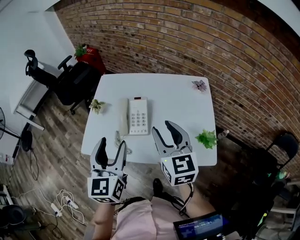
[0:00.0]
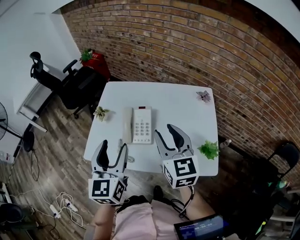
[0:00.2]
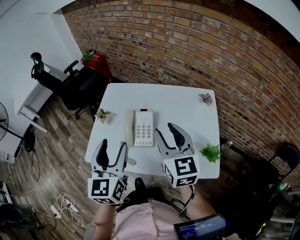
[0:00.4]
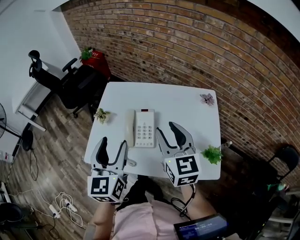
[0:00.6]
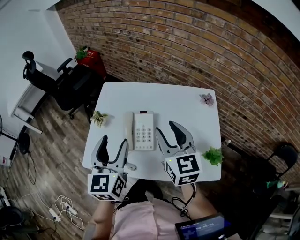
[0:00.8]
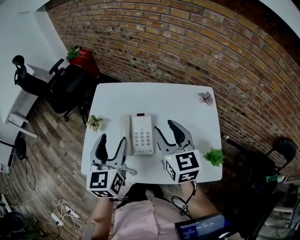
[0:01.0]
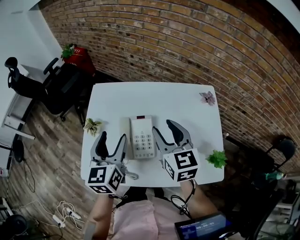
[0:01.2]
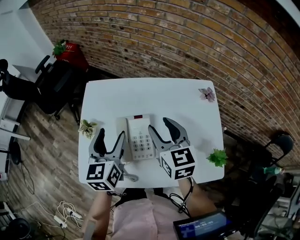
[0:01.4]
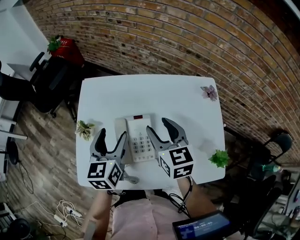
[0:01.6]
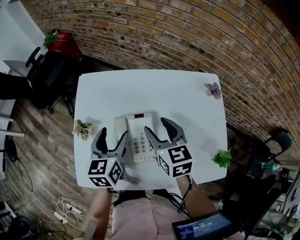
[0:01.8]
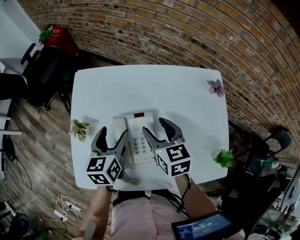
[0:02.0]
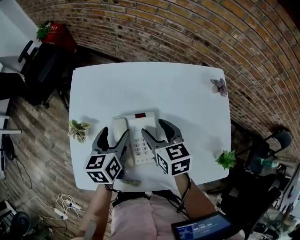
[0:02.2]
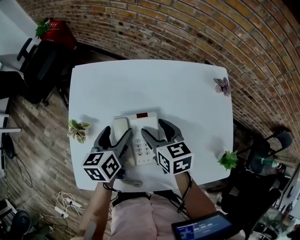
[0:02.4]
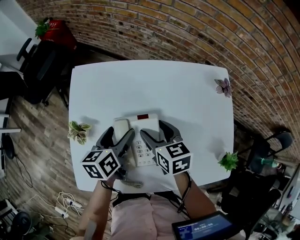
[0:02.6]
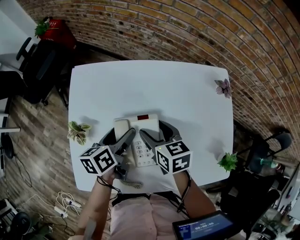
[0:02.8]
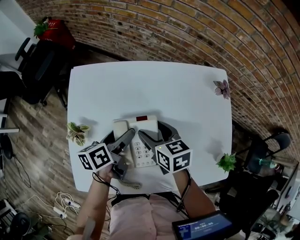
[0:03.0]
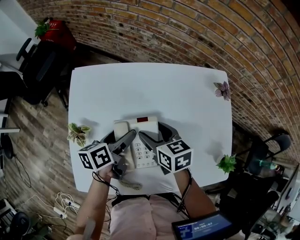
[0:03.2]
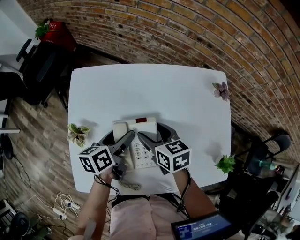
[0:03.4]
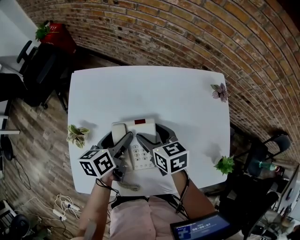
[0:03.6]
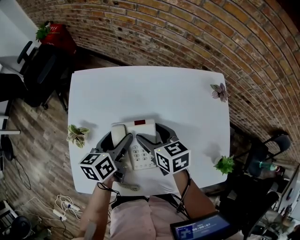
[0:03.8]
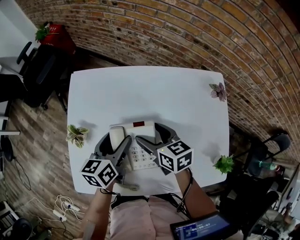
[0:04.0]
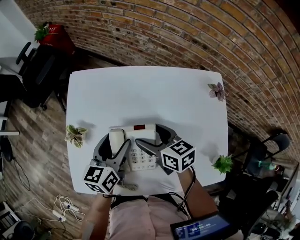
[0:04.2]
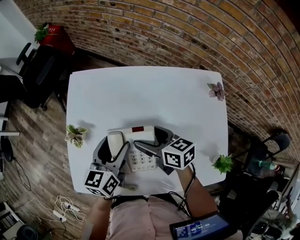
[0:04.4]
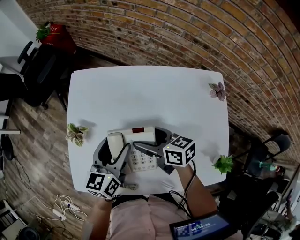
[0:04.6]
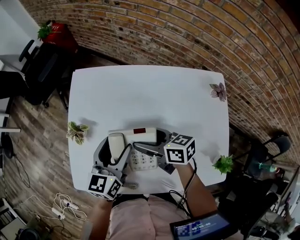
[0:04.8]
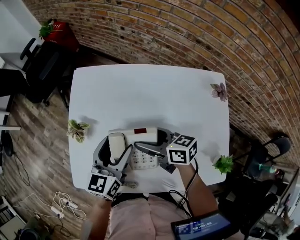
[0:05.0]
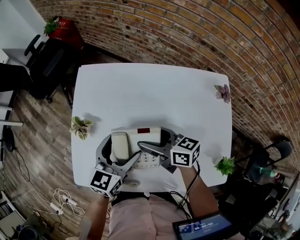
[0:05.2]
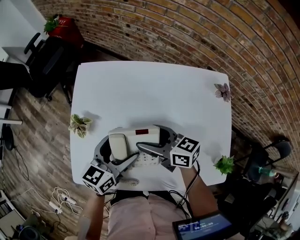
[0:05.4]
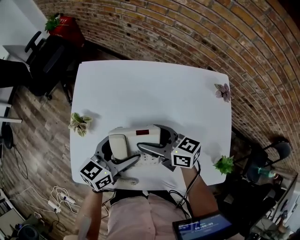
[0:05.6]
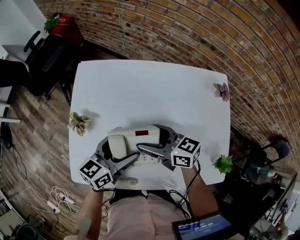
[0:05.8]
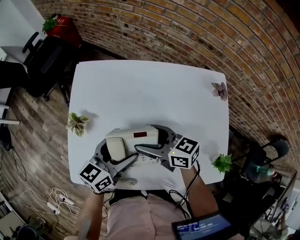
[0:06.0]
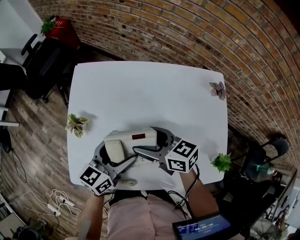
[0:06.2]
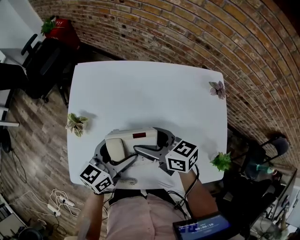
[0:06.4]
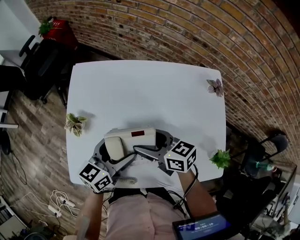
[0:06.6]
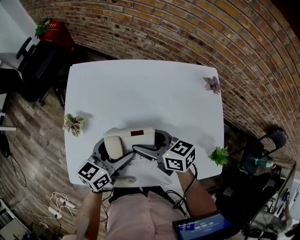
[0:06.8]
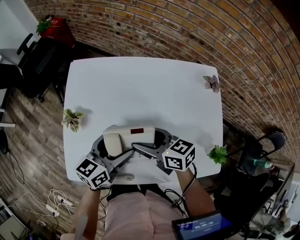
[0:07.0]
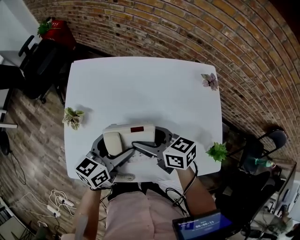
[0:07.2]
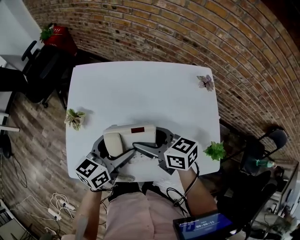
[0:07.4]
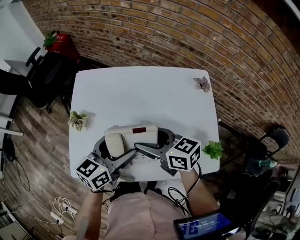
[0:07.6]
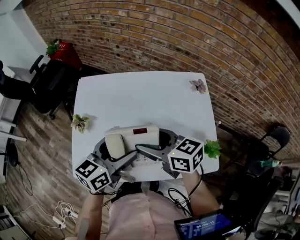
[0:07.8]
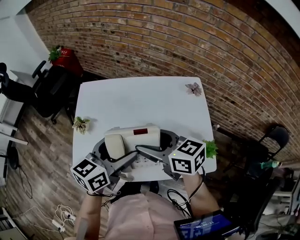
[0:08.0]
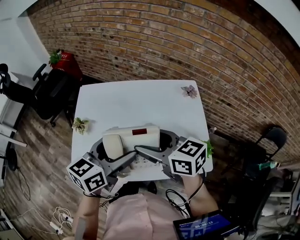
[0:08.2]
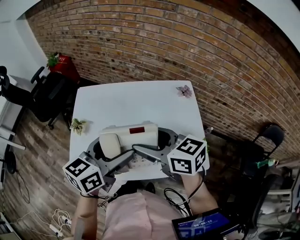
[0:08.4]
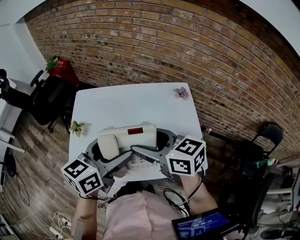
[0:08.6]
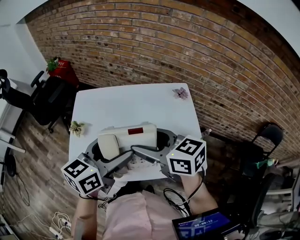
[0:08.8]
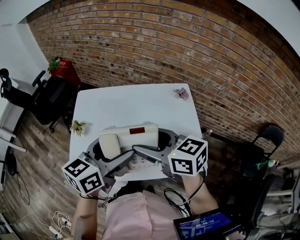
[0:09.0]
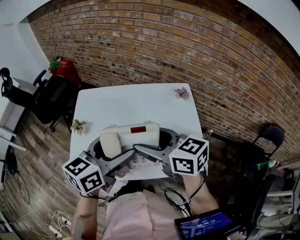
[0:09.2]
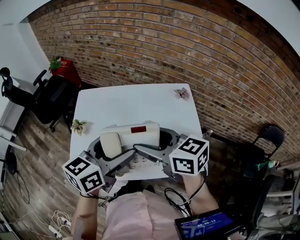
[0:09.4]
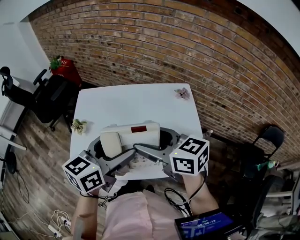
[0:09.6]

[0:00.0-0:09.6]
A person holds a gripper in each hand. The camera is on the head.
0:00.0 to 0:01.6: The two grippers go roughly 25 cm forward and downward.
0:01.6 to 0:03.2: Both grippers travel together downward, approximately 15 cm. The left gripper swivels roughly 40 degrees. Meanwhile the right gripper rotates approximately 20 degrees.
0:03.2 to 0:04.8: The right gripper turns by roughly 30 degrees, while the left gripper travels upward by roughly 5 cm, and swivels approximately 40 degrees.
0:06.4 to 0:08.0: Both grippers move upward and backward, roughly 15 cm.
0:08.0 to 0:09.6: Both grippers travel together upward, some 5 cm.

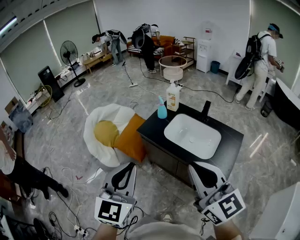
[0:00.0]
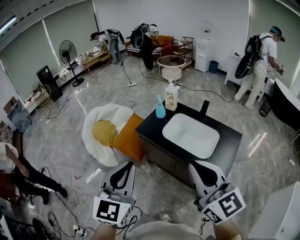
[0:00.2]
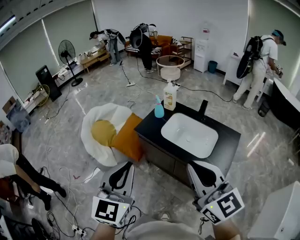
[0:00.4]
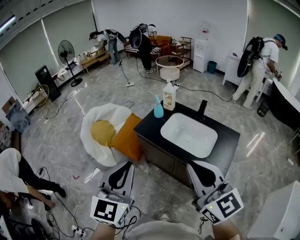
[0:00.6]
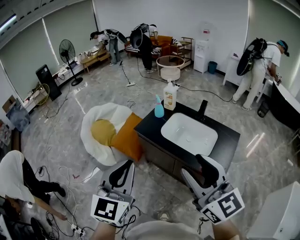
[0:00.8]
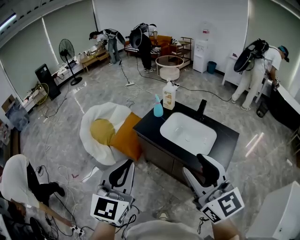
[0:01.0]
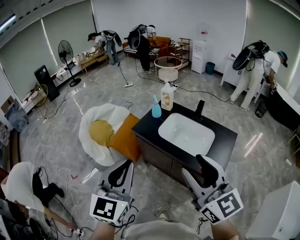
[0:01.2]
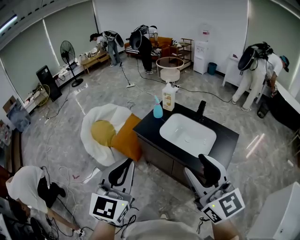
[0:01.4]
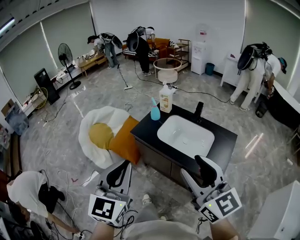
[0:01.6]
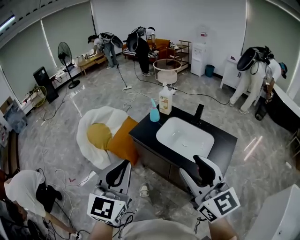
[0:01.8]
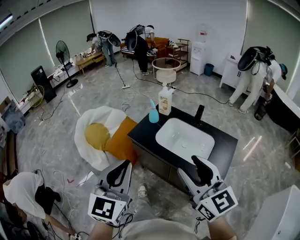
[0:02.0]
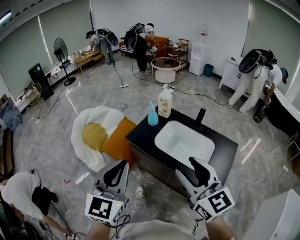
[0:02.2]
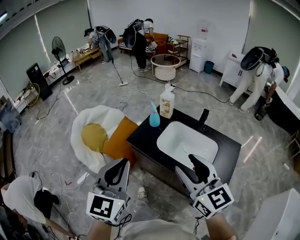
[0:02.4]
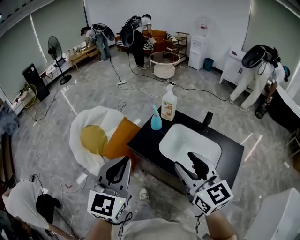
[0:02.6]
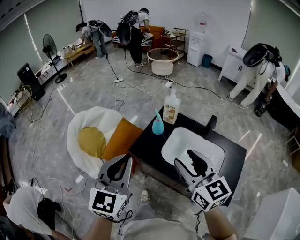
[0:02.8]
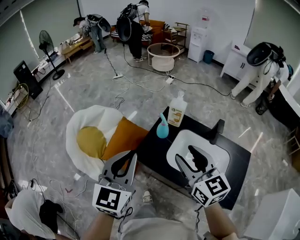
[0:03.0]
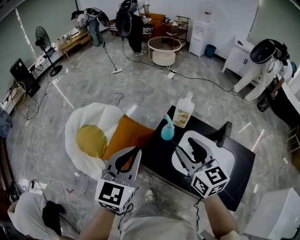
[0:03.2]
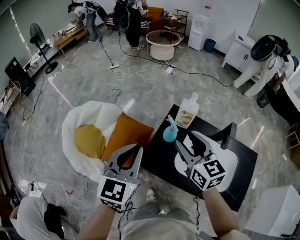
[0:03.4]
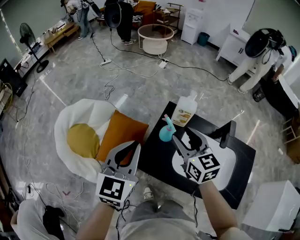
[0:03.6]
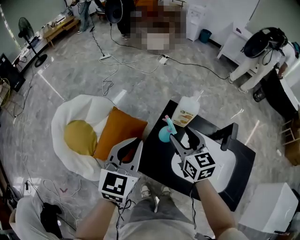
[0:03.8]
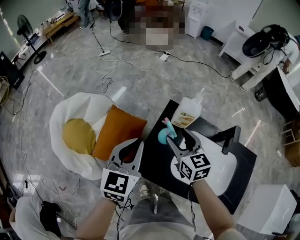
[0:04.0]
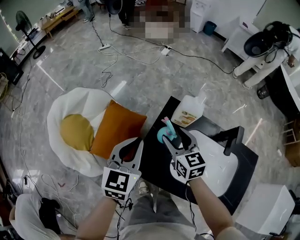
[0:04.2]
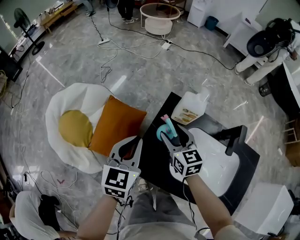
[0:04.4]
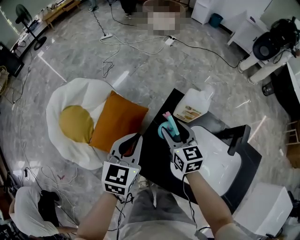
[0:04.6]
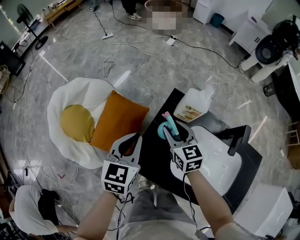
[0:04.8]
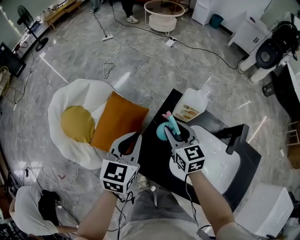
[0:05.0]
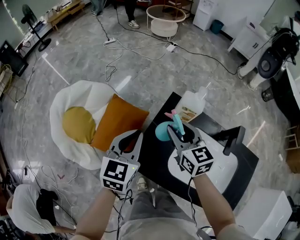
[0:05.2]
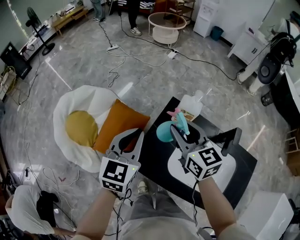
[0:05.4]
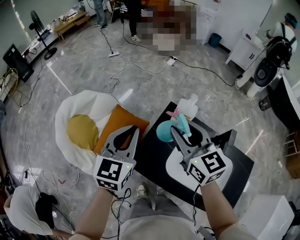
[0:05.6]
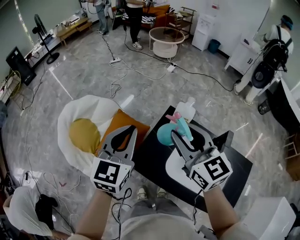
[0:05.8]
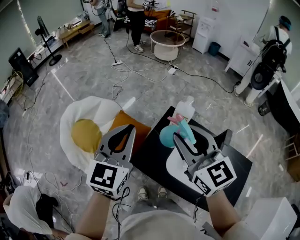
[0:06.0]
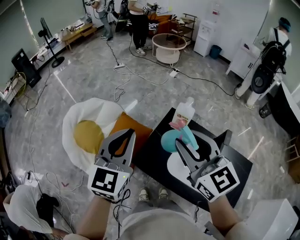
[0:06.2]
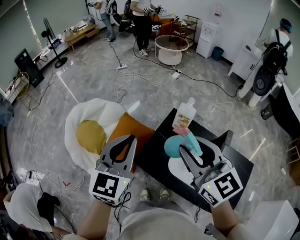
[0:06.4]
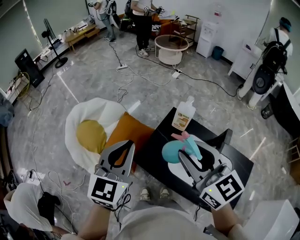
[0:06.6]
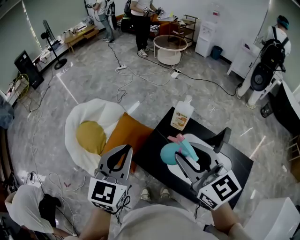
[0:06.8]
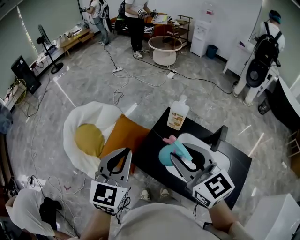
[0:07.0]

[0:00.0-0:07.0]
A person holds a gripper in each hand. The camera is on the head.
0:00.0 to 0:01.4: The right gripper opens its fingers.
0:01.4 to 0:02.8: Both grippers travel together forward, roughly 30 cm.
0:02.8 to 0:04.2: The two grippers go about 40 cm forward and downward.
0:04.2 to 0:05.6: The left gripper shifts roughly 10 cm upward. The right gripper is displaced upward by some 20 cm, and closes.
0:05.6 to 0:07.0: The two grippers go roughly 15 cm backward and upward.

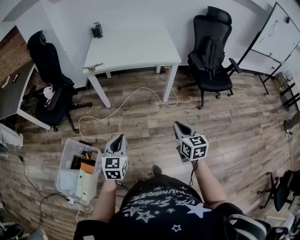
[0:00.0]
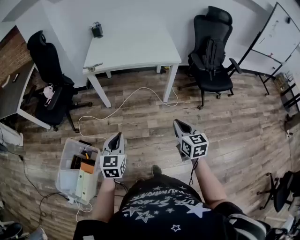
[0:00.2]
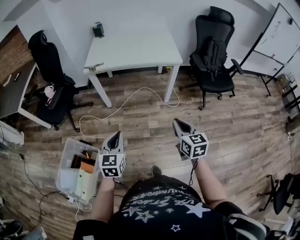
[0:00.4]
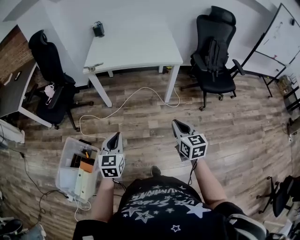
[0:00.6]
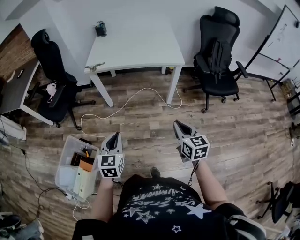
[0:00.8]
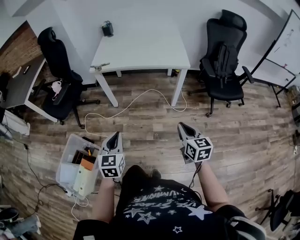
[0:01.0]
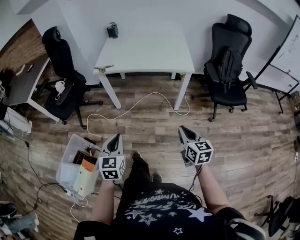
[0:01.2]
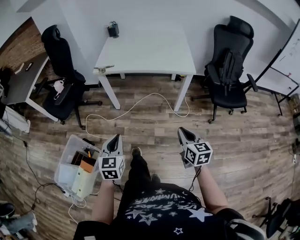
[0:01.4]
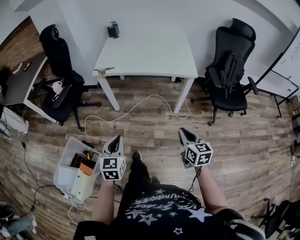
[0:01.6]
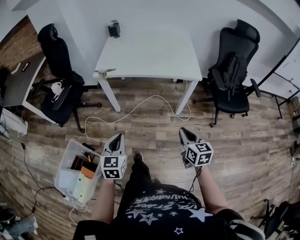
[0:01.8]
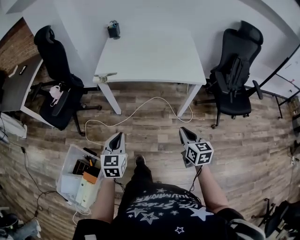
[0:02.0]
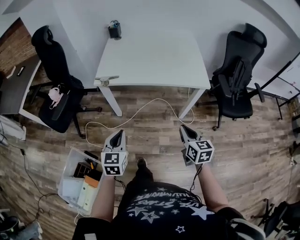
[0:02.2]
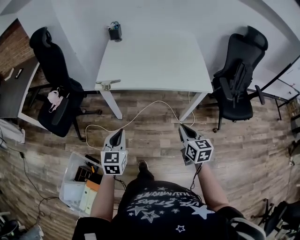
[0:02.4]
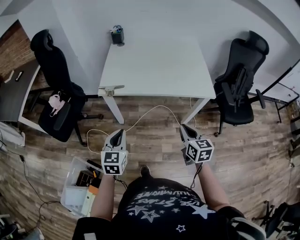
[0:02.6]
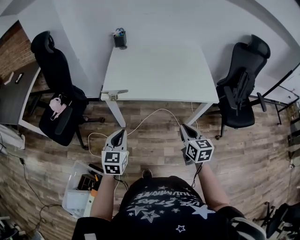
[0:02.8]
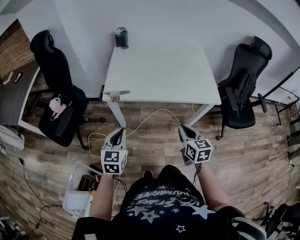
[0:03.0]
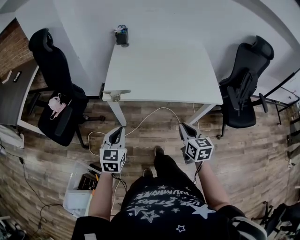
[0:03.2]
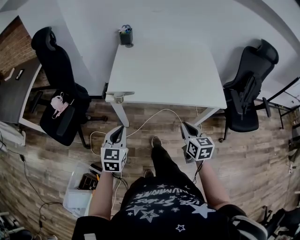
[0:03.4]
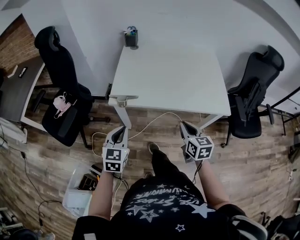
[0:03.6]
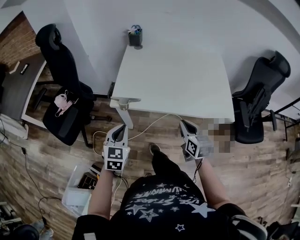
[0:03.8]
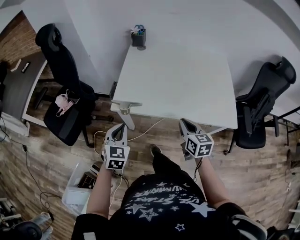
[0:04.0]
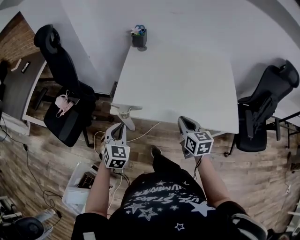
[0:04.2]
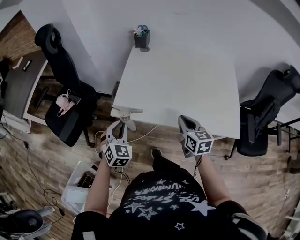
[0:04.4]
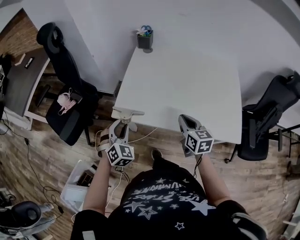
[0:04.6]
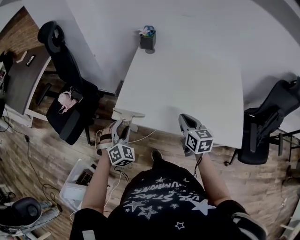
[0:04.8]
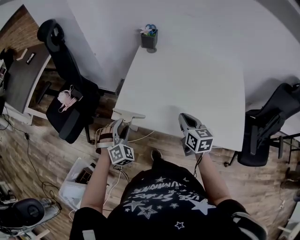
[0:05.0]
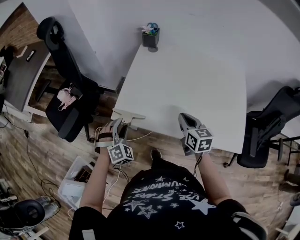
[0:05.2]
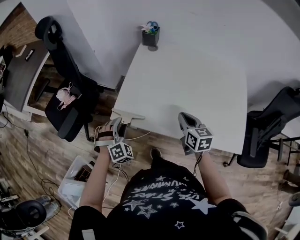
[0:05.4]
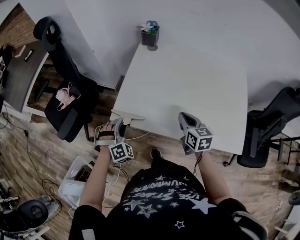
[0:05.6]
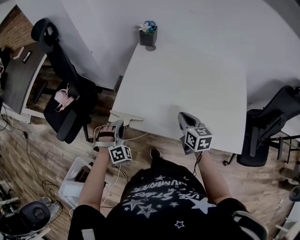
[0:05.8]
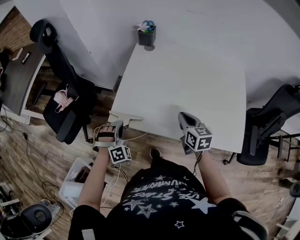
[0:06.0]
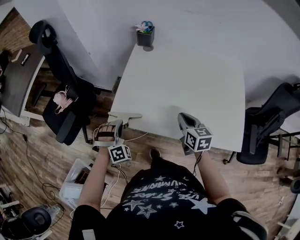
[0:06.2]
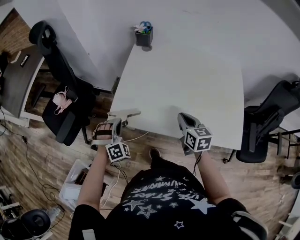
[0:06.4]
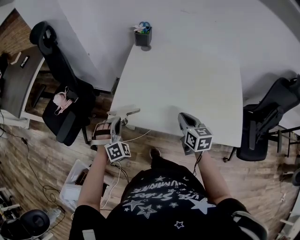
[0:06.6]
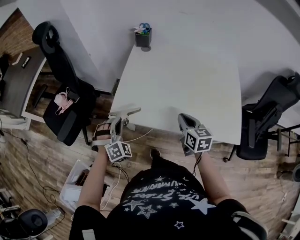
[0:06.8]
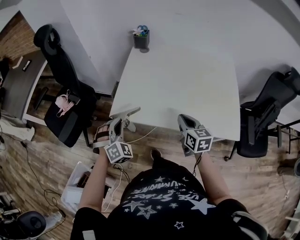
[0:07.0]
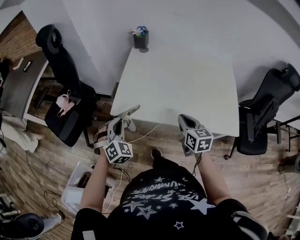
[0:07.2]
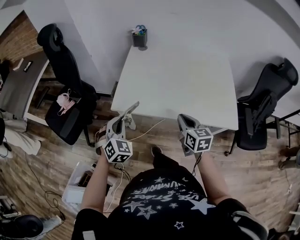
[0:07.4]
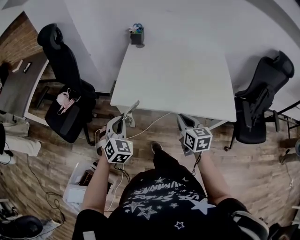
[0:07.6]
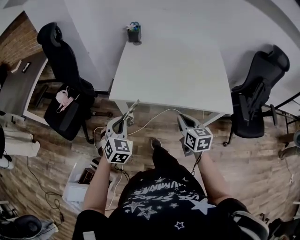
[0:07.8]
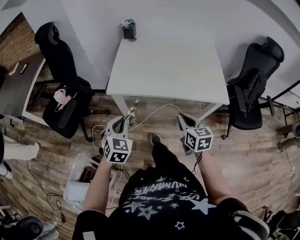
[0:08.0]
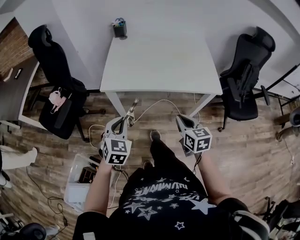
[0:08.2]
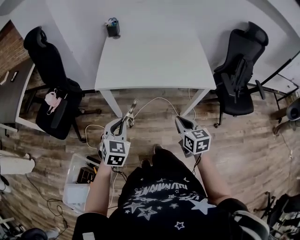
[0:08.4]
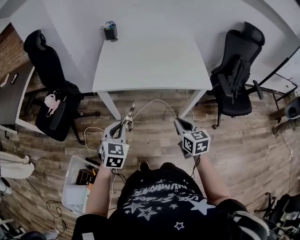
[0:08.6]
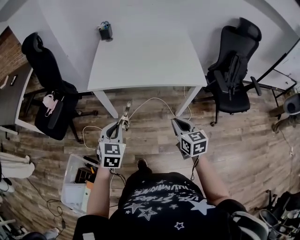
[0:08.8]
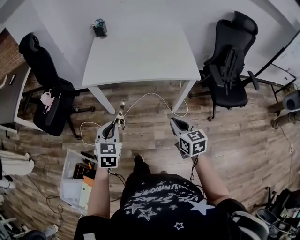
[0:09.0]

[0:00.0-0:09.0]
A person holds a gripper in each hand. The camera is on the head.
0:00.0 to 0:01.6: The two grippers go roughly 10 cm forward.
0:01.6 to 0:03.0: The two grippers go roughly 35 cm forward and to the left.
0:03.0 to 0:04.4: The two grippers go some 25 cm forward. The left gripper turns by about 30 degrees.
0:04.4 to 0:06.0: The right gripper is displaced forward by approximately 10 cm; the left gripper is displaced forward and downward by some 10 cm, rotates around the line of its fingers by some 40 degrees, clockwise from behind, and opens, then closes again.
0:06.0 to 0:07.6: The right gripper is displaced backward by roughly 20 cm, while the left gripper shifts some 20 cm backward and upward, and changes its angle by approximately 40 degrees.
0:07.6 to 0:09.0: Both grippers move backward and to the right, approximately 30 cm. The left gripper swivels some 20 degrees.
